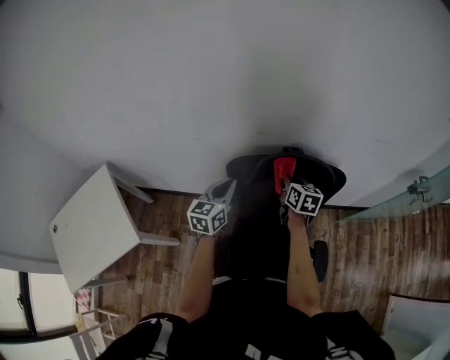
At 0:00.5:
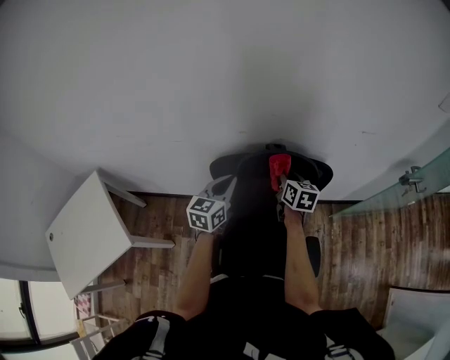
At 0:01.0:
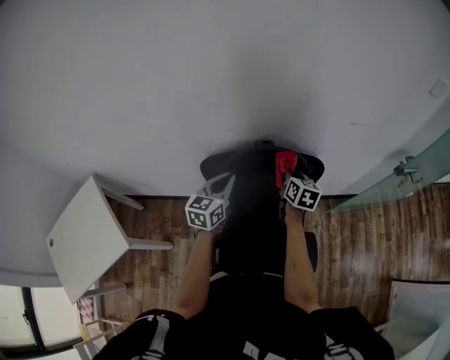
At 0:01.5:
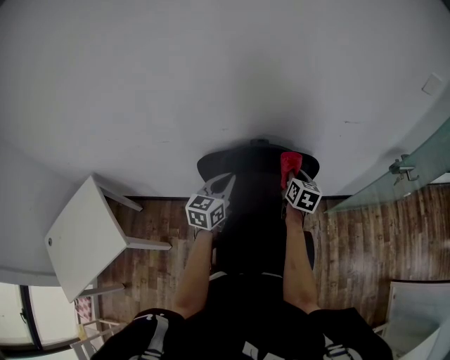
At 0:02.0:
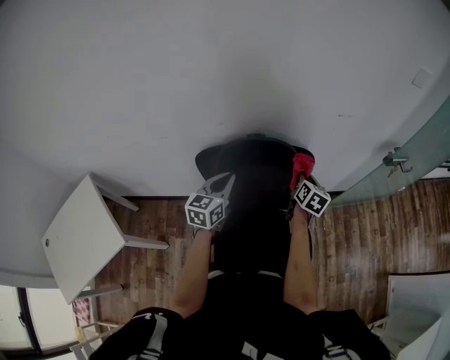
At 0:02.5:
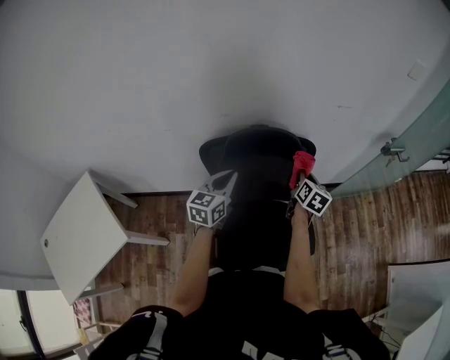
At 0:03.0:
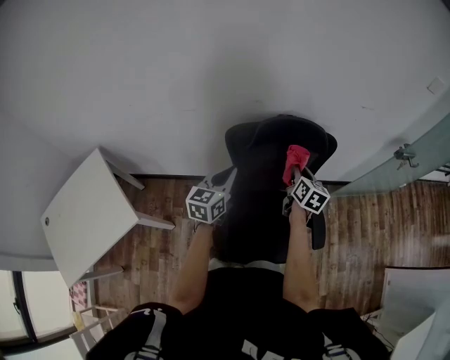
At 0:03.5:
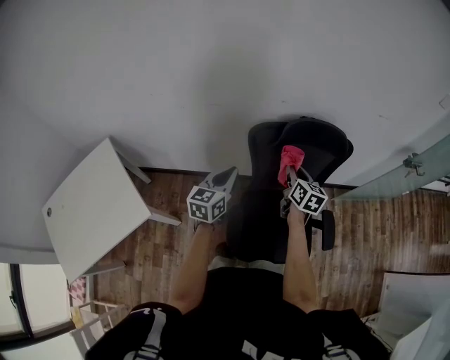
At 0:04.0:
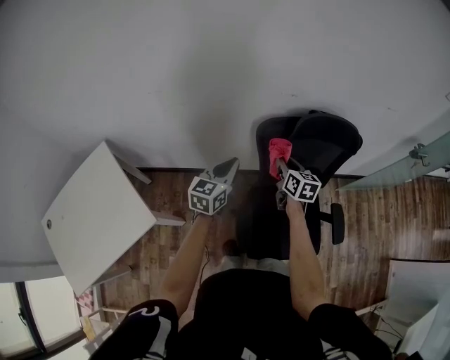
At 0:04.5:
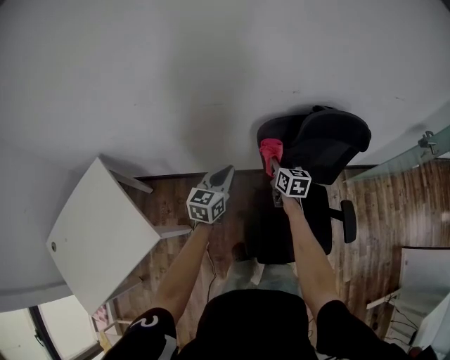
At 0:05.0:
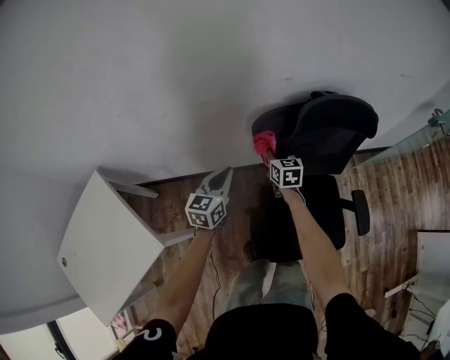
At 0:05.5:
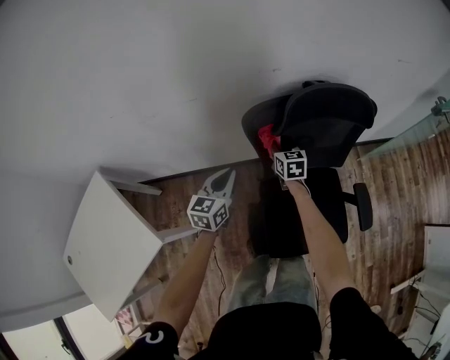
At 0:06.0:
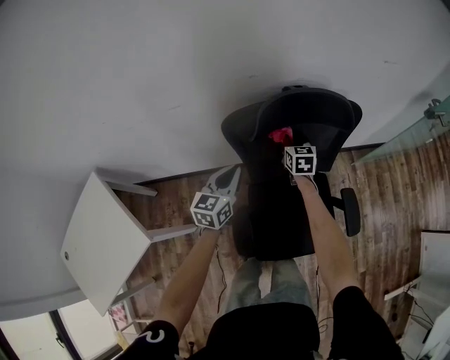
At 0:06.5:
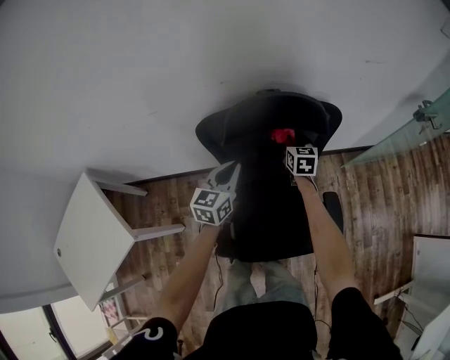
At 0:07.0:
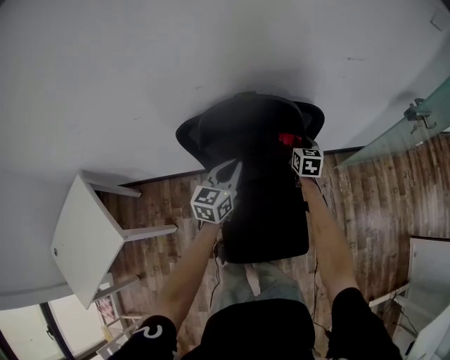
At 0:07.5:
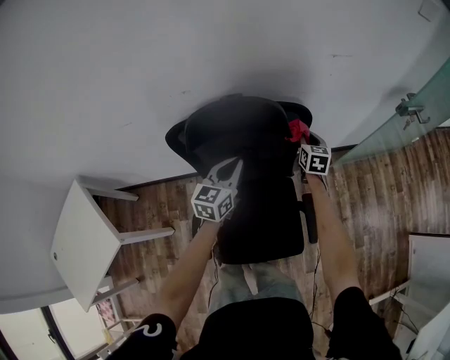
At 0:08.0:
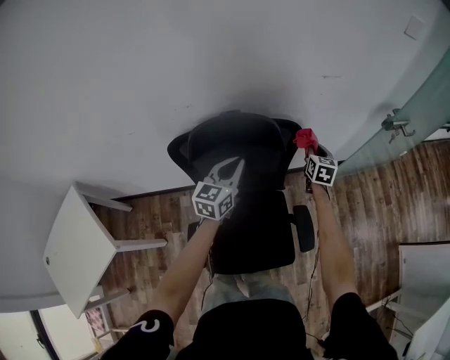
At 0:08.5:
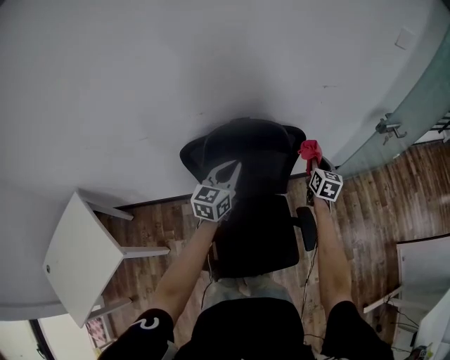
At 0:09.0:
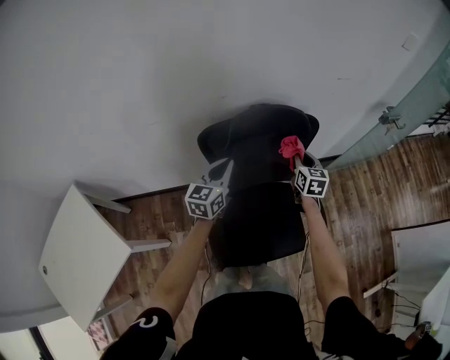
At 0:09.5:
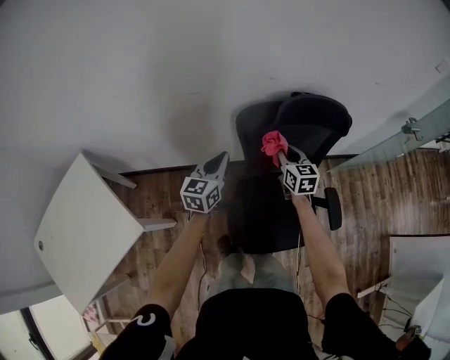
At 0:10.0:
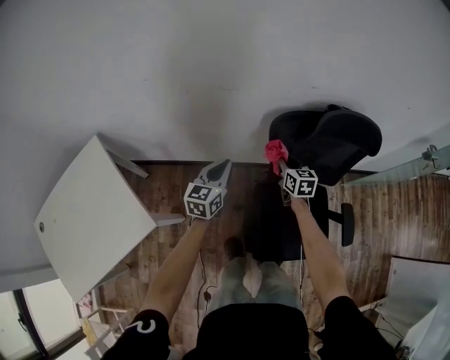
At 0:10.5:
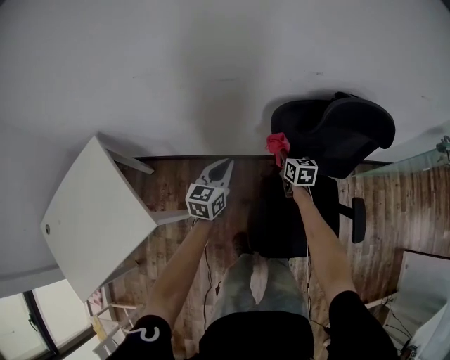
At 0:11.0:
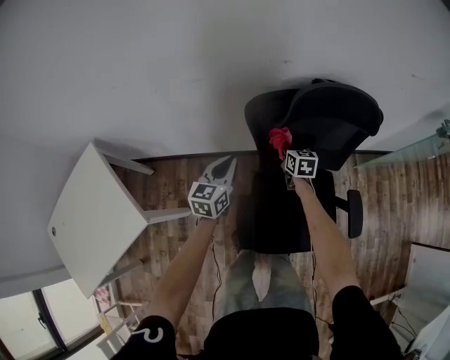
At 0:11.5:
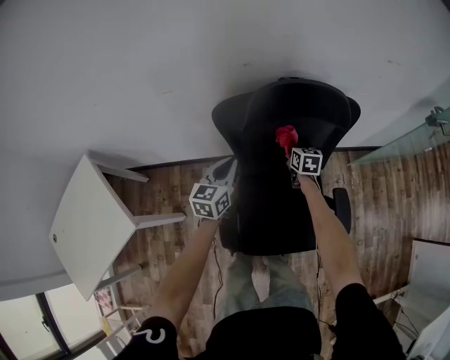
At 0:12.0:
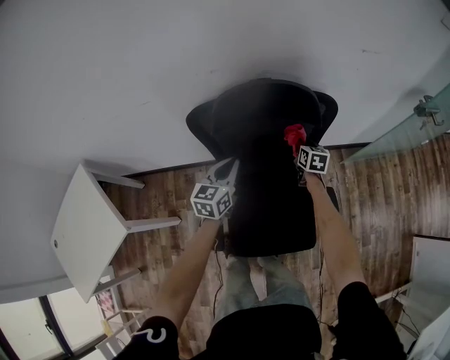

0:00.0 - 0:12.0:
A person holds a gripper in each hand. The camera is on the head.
0:00.0 - 0:02.0: The right gripper shifts roughly 20 cm to the right, and turns by some 30 degrees. Meanwhile the left gripper heads to the right, covering approximately 10 cm.
0:02.0 - 0:04.0: The right gripper heads to the left, covering some 35 cm, and swivels approximately 20 degrees. The left gripper travels to the left and backward by roughly 25 cm.
0:04.0 - 0:06.0: The right gripper shifts approximately 20 cm forward, to the right and downward, while the left gripper moves to the right, downward and forward, approximately 15 cm.
0:06.0 - 0:08.0: The right gripper travels to the right by about 30 cm, while the left gripper shifts some 25 cm to the right and forward.
0:08.0 - 0:10.0: The two grippers travel together, to the left, about 50 cm. The right gripper swivels some 30 degrees.
0:10.0 - 0:12.0: The two grippers go about 30 cm to the right.

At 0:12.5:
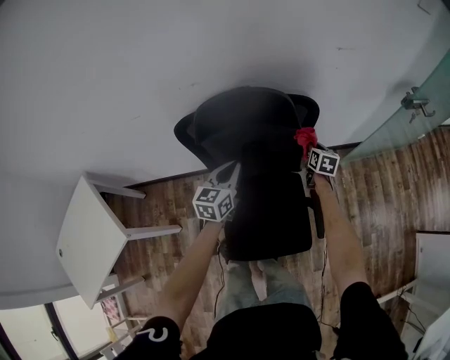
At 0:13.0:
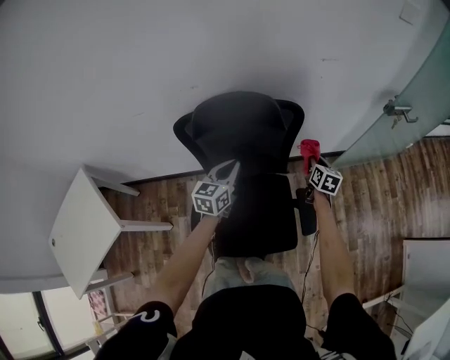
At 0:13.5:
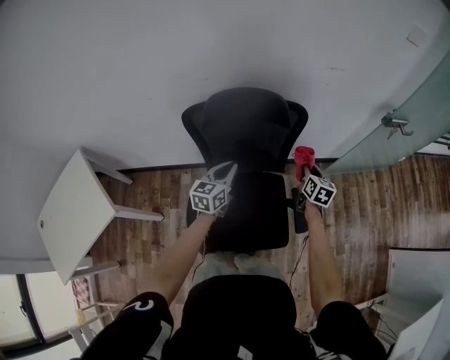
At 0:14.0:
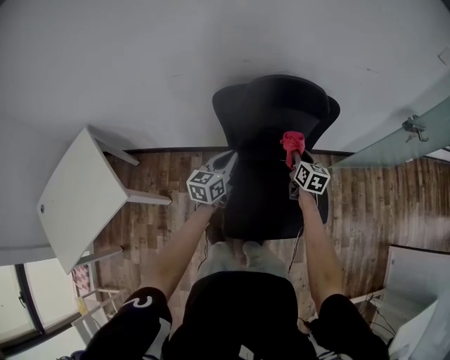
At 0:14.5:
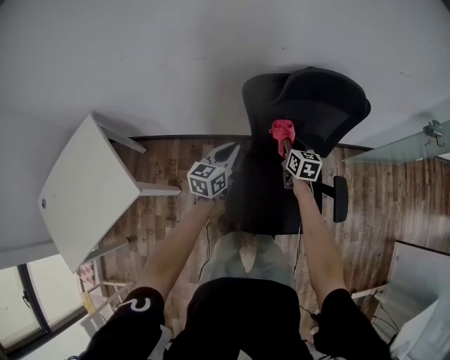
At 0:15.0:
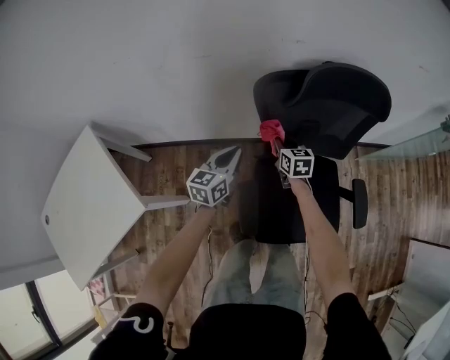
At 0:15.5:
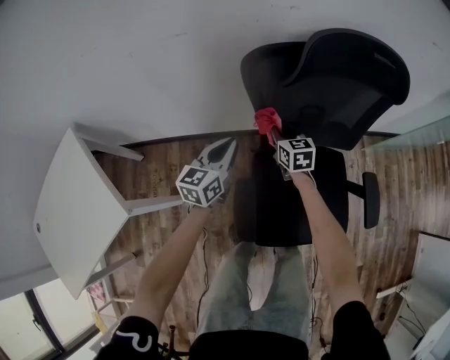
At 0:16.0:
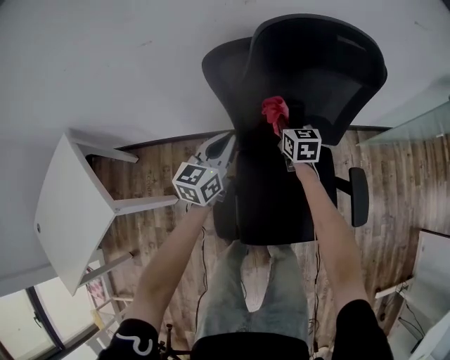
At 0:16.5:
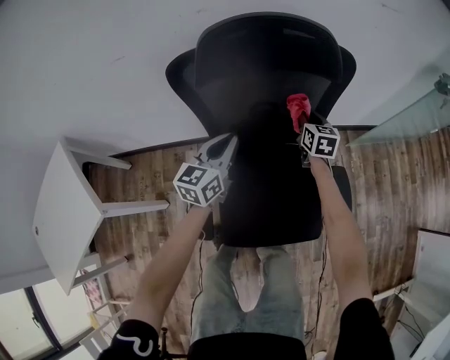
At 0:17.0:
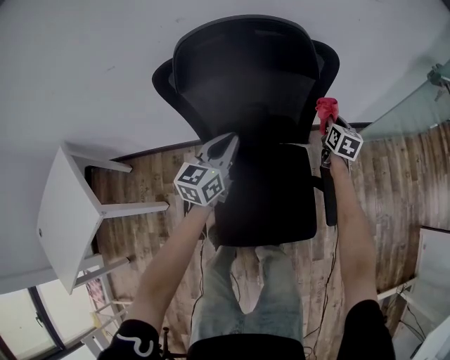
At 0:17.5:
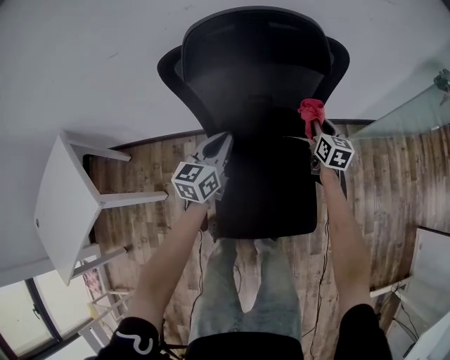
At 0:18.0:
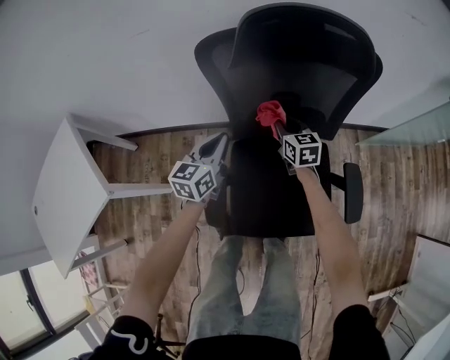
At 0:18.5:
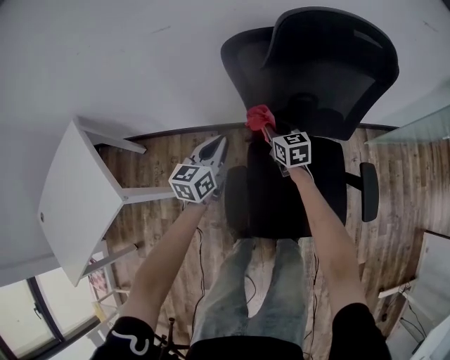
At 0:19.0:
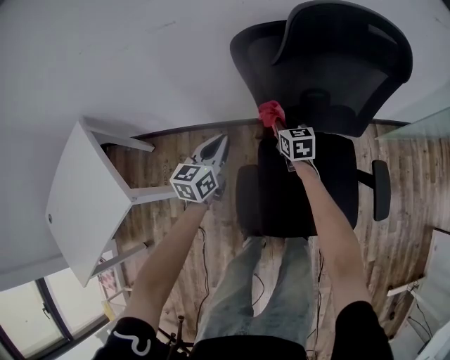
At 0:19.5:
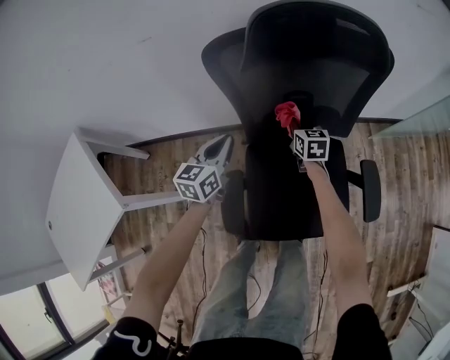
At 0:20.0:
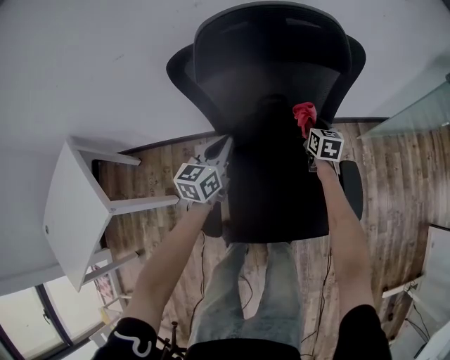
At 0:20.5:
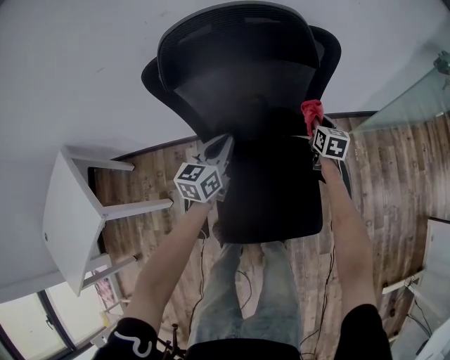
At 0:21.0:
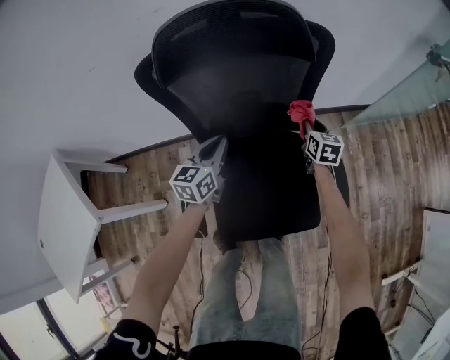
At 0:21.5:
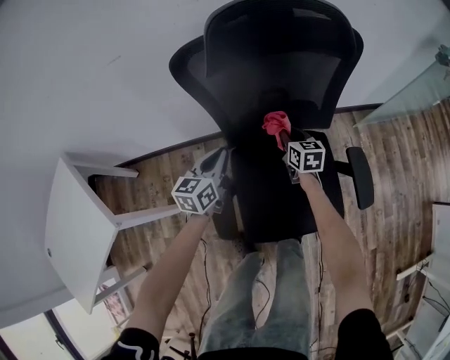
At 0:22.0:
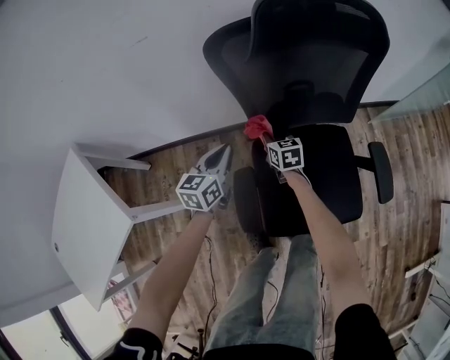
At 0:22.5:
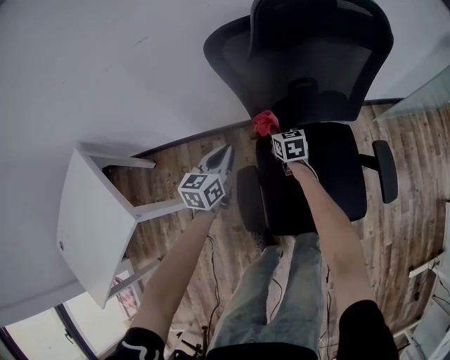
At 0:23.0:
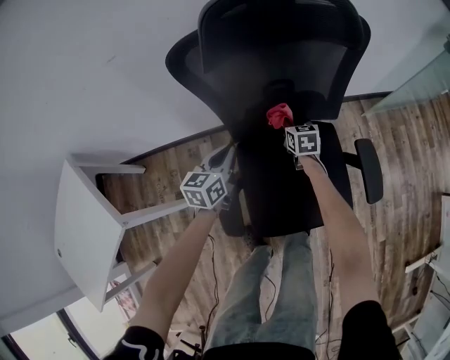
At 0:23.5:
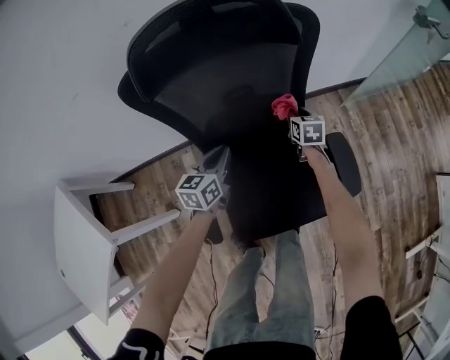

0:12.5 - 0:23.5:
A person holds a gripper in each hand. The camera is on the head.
0:12.5 - 0:14.5: Both grippers move to the left and backward, approximately 30 cm.
0:14.5 - 0:16.0: The left gripper heads downward, to the right and forward, covering roughly 10 cm. The right gripper is displaced downward and forward by roughly 15 cm.
0:16.0 - 0:18.0: The right gripper goes to the right and returns, some 35 cm each way; the left gripper reaches about 15 cm to the right, then returns.
0:18.0 - 0:20.0: The left gripper moves to the right, some 5 cm, while the right gripper goes some 15 cm to the right, and turns by about 20 degrees.
0:20.0 - 0:21.5: The right gripper travels to the left and backward by about 15 cm. The left gripper heads to the left, covering about 5 cm.
0:21.5 - 0:23.5: The two grippers go approximately 15 cm to the right.

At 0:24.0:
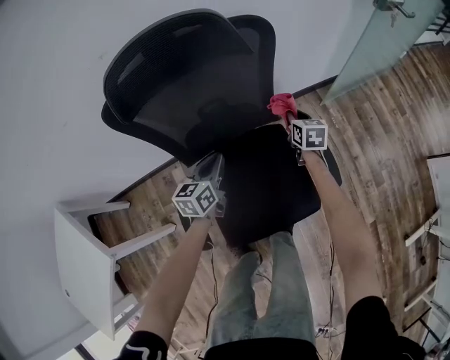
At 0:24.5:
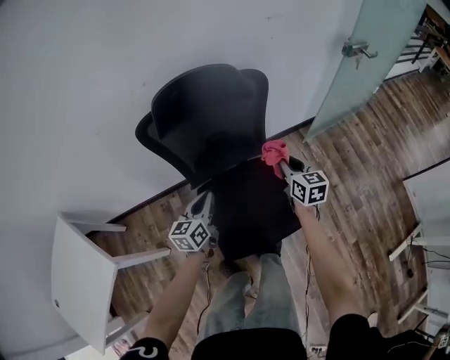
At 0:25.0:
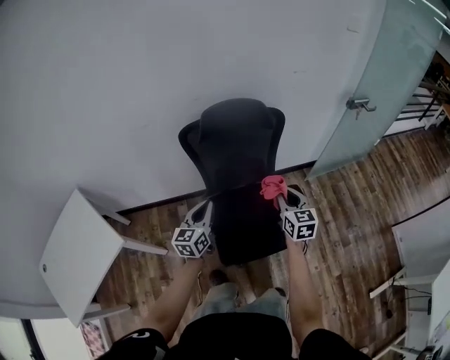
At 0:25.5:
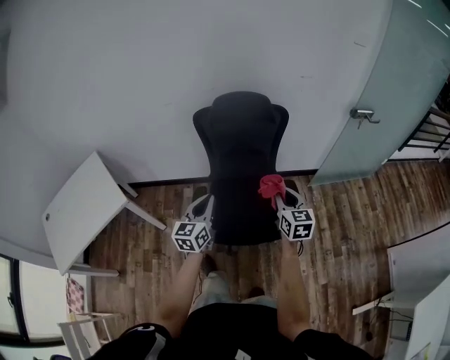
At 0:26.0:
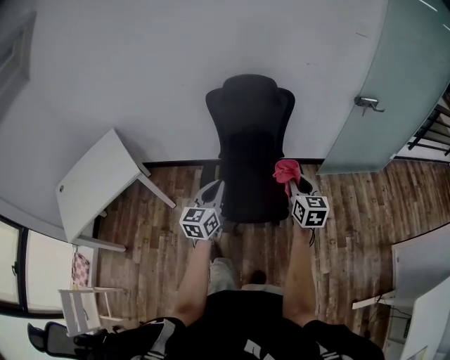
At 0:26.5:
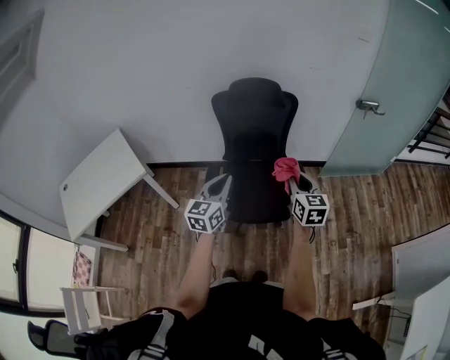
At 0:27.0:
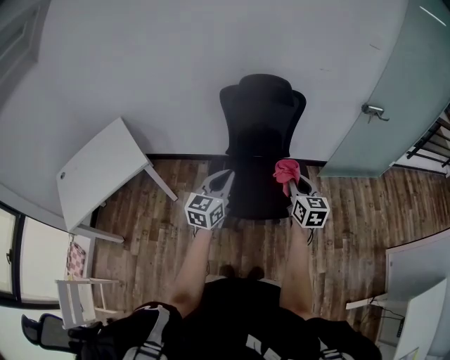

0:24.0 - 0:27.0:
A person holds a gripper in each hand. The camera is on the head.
0:24.0 - 0:25.5: The two grippers go some 50 cm backward and upward. The right gripper swivels roughly 30 degrees. Meanwhile the left gripper rotates roughly 30 degrees.
0:25.5 - 0:27.0: The left gripper moves backward and upward, approximately 15 cm. Meanwhile the right gripper shifts about 10 cm backward.
